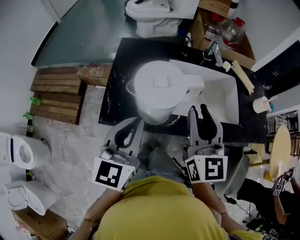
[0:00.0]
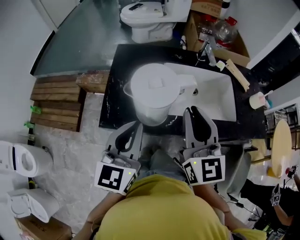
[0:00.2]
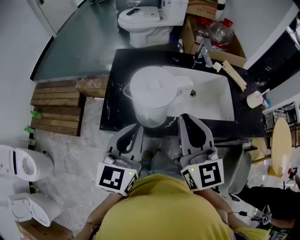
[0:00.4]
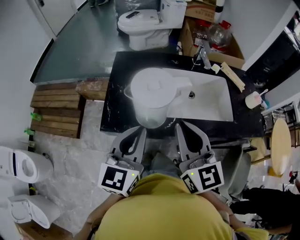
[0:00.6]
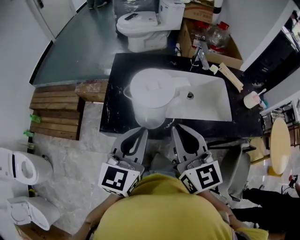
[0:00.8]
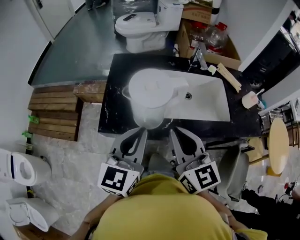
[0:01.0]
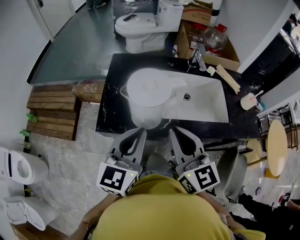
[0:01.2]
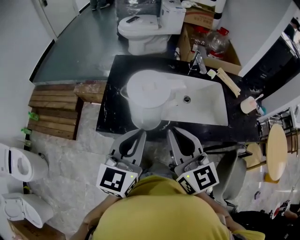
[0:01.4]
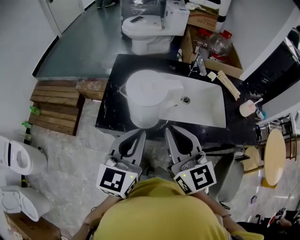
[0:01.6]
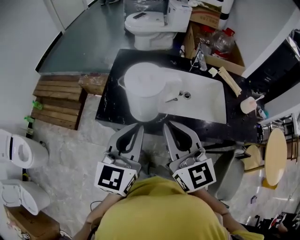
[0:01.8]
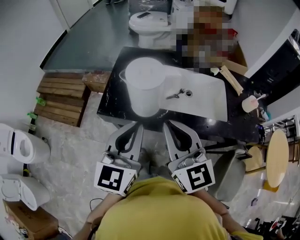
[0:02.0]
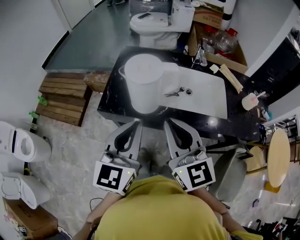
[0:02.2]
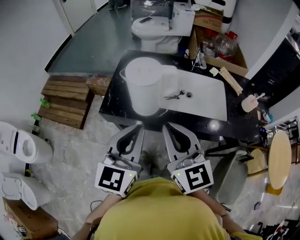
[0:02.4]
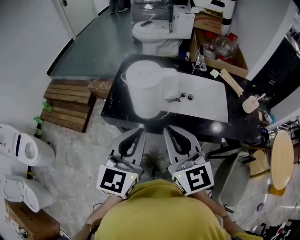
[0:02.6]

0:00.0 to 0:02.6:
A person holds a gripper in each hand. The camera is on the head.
0:00.0 to 0:01.2: The right gripper travels backward by approximately 5 cm, and closes its fingers.
0:01.2 to 0:02.6: The grippers both shift backward by approximately 10 cm.

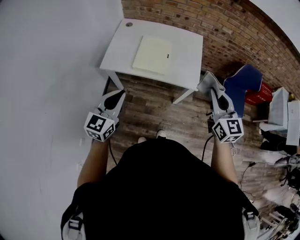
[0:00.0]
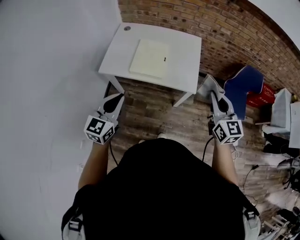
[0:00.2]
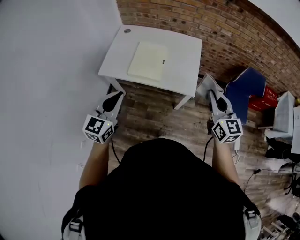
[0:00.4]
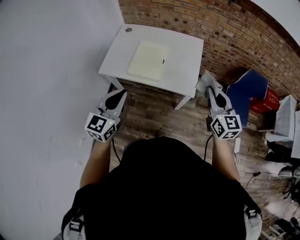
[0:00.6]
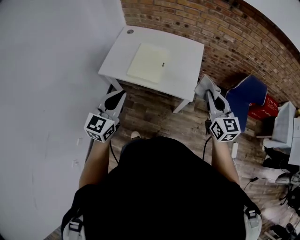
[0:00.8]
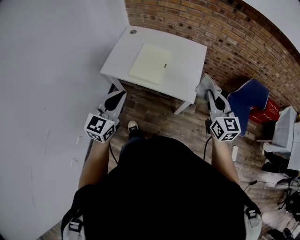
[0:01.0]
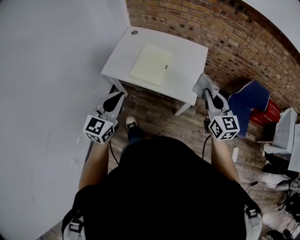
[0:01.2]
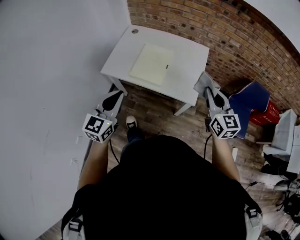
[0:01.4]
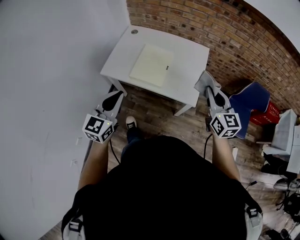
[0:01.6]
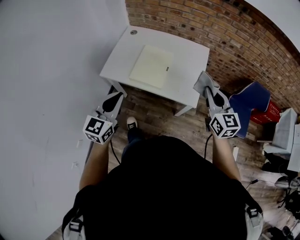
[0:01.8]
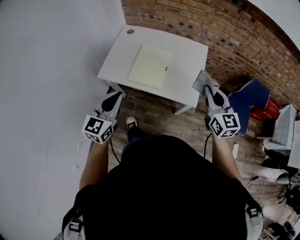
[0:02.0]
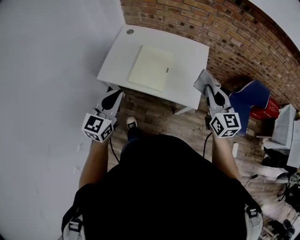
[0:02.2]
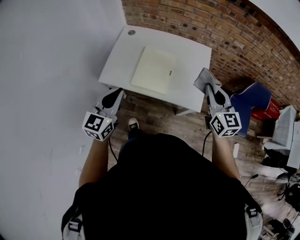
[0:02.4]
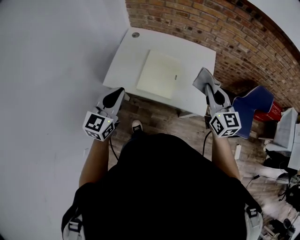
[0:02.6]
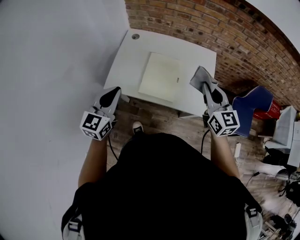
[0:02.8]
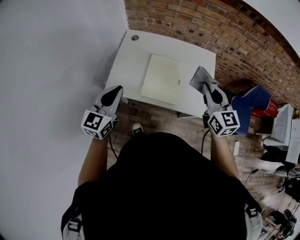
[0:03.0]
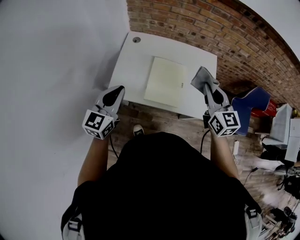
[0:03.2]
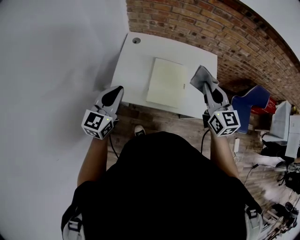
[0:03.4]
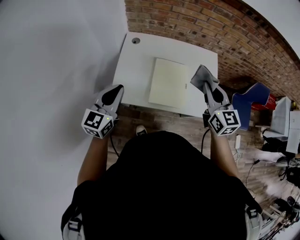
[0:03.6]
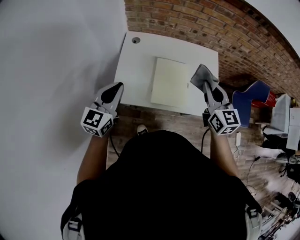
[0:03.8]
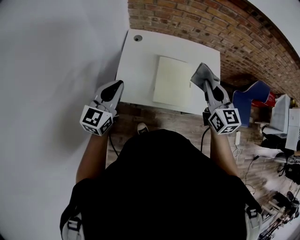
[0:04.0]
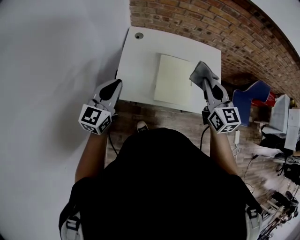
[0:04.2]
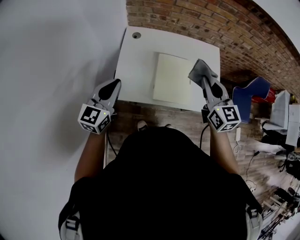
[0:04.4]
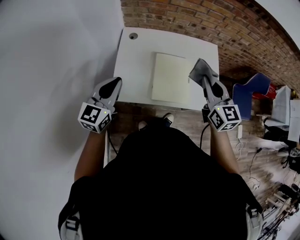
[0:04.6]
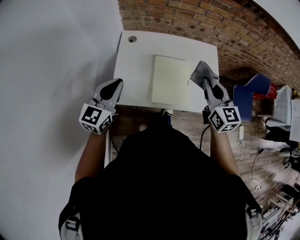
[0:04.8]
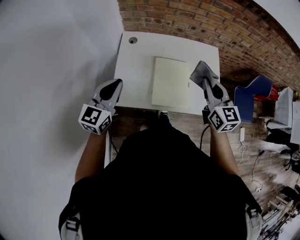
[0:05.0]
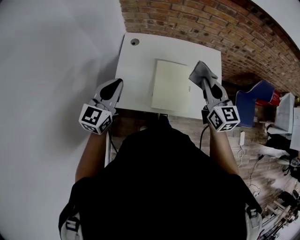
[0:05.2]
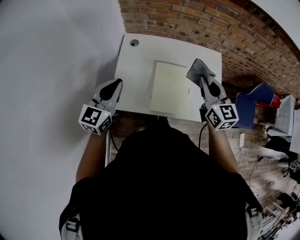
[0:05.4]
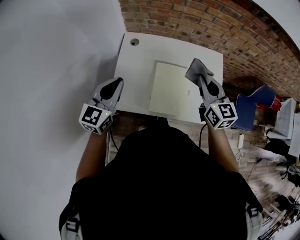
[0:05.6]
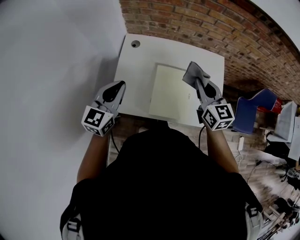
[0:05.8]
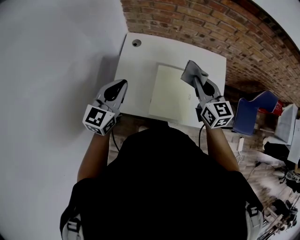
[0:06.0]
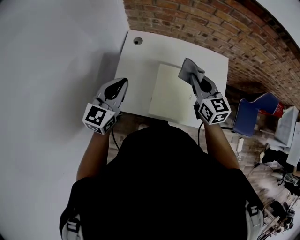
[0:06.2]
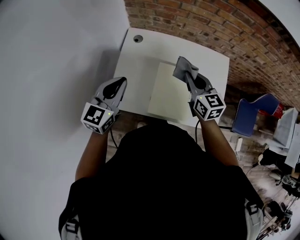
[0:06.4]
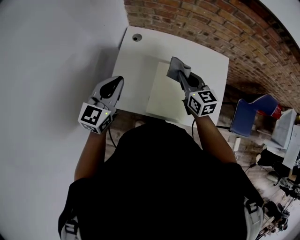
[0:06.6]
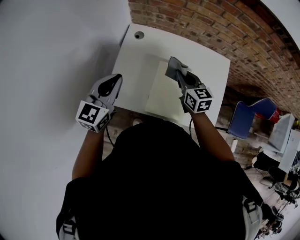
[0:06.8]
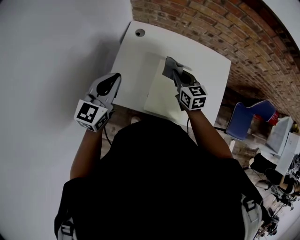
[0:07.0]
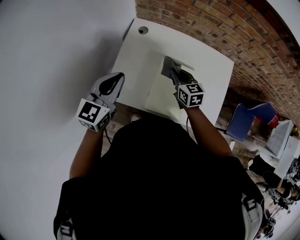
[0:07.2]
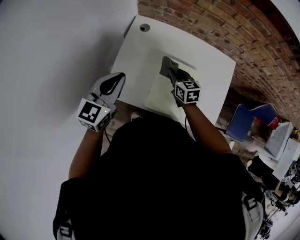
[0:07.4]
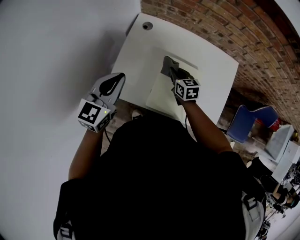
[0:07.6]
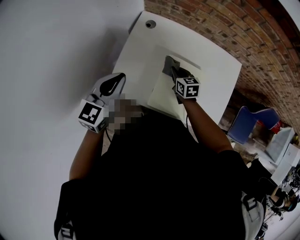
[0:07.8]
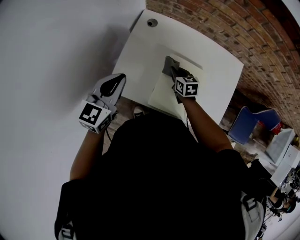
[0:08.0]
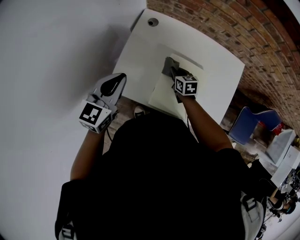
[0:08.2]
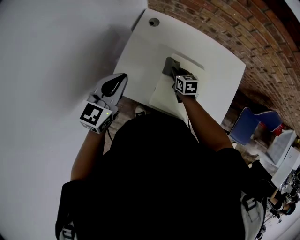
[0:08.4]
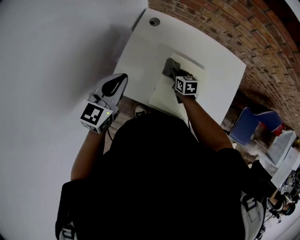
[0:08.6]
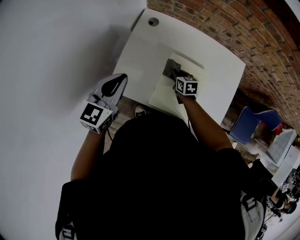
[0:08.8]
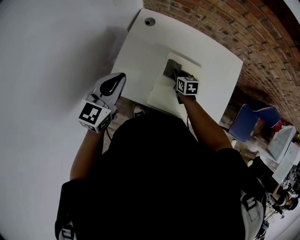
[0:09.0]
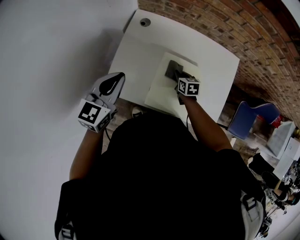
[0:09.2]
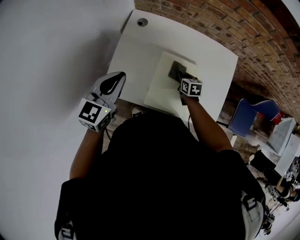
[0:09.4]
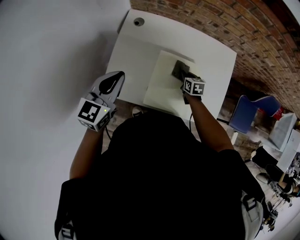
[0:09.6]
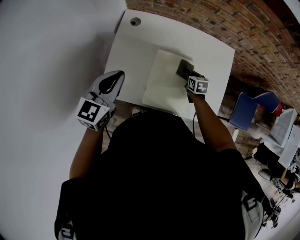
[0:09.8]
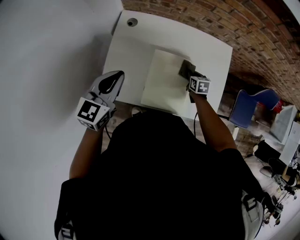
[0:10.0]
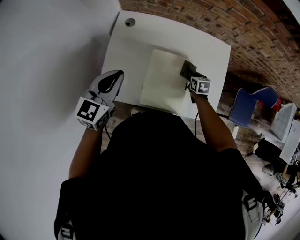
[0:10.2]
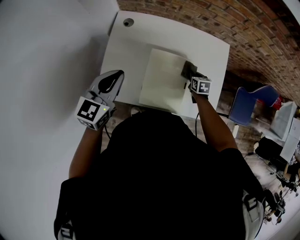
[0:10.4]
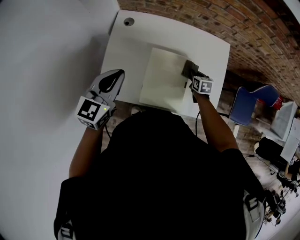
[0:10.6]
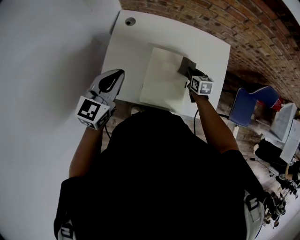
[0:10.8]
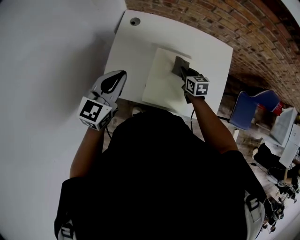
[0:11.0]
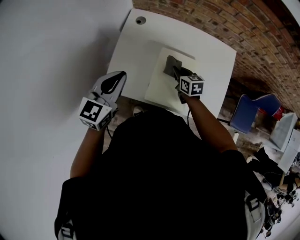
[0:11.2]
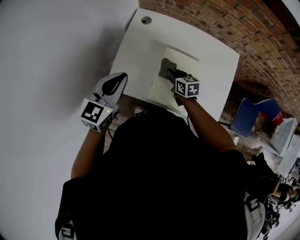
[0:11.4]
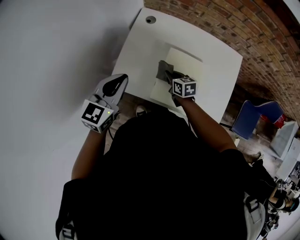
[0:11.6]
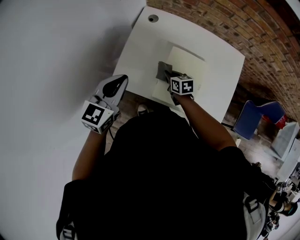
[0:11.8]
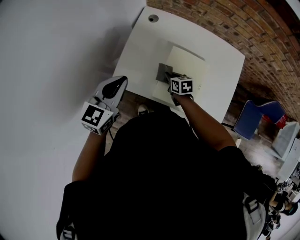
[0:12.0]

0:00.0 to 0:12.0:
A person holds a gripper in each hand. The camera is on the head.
0:00.0 to 0:01.6: The right gripper heads forward and to the right, covering roughly 15 cm. The left gripper shifts some 10 cm to the right and forward.
0:01.6 to 0:03.0: The left gripper goes about 25 cm forward and to the left. The right gripper moves to the left and forward, about 20 cm.
0:03.0 to 0:04.4: The right gripper is displaced to the left by approximately 10 cm. Meanwhile the left gripper goes roughly 15 cm to the left and forward.
0:04.4 to 0:06.0: The left gripper moves forward and to the right, some 10 cm. Meanwhile the right gripper shifts approximately 15 cm forward and downward.
0:06.0 to 0:07.6: The right gripper heads downward, covering roughly 20 cm, and swivels about 30 degrees.
0:07.6 to 0:09.0: The right gripper goes approximately 10 cm downward.
0:09.0 to 0:10.4: The left gripper travels to the right by some 5 cm. The right gripper goes roughly 20 cm to the right.
0:10.4 to 0:12.0: The left gripper shifts some 10 cm backward and to the left; the right gripper travels to the left by approximately 25 cm, and rotates about 30 degrees.

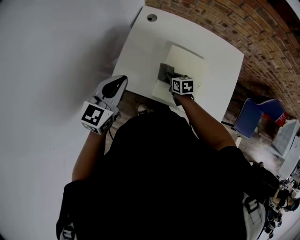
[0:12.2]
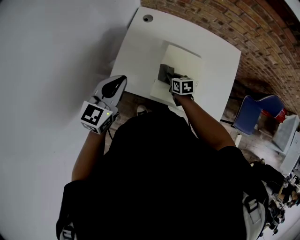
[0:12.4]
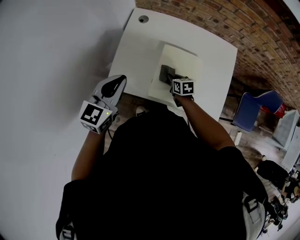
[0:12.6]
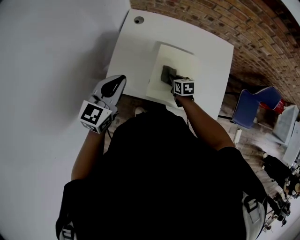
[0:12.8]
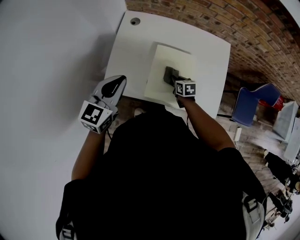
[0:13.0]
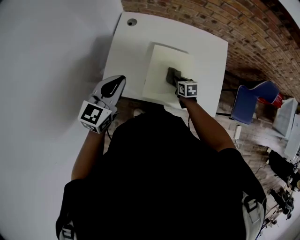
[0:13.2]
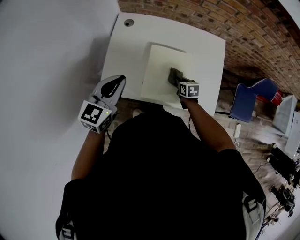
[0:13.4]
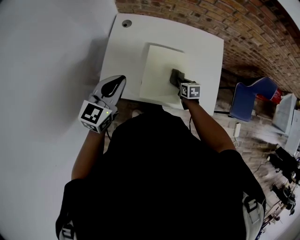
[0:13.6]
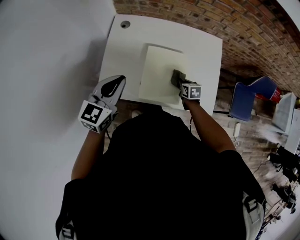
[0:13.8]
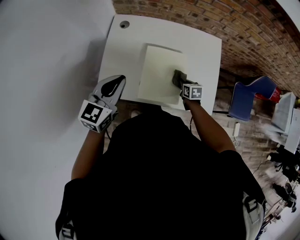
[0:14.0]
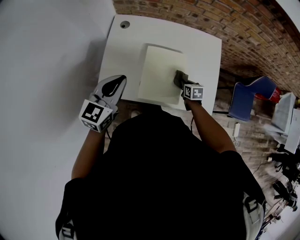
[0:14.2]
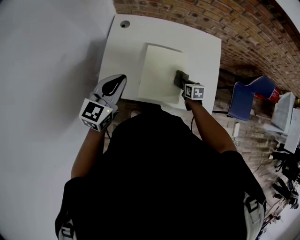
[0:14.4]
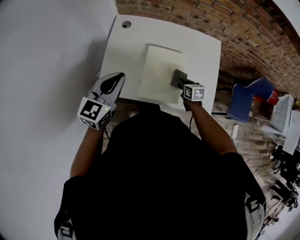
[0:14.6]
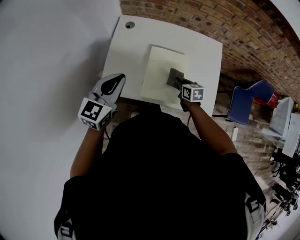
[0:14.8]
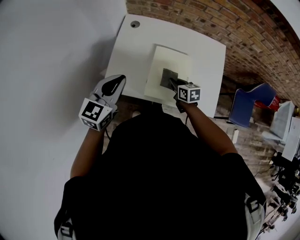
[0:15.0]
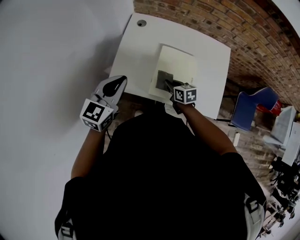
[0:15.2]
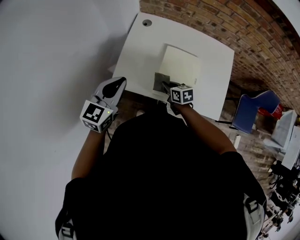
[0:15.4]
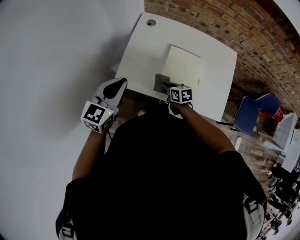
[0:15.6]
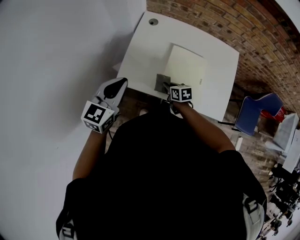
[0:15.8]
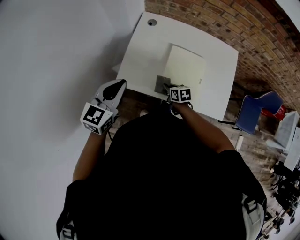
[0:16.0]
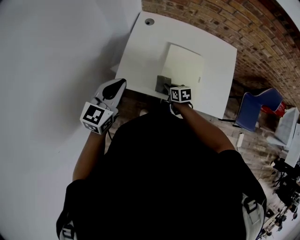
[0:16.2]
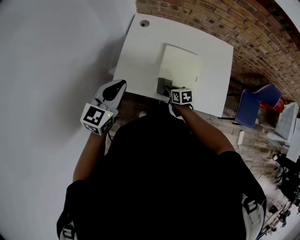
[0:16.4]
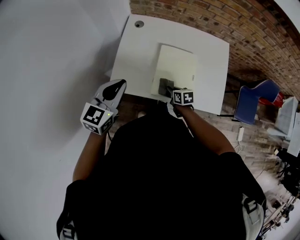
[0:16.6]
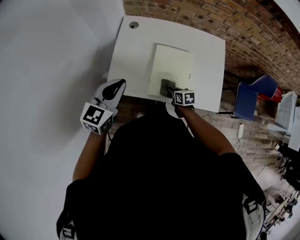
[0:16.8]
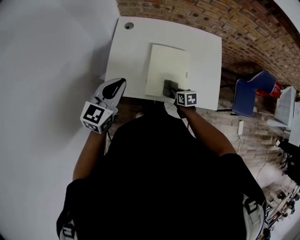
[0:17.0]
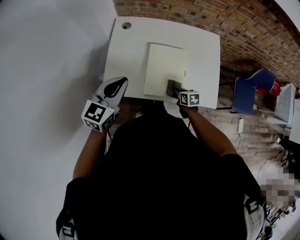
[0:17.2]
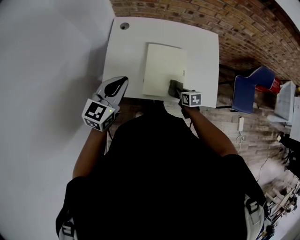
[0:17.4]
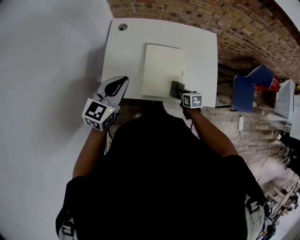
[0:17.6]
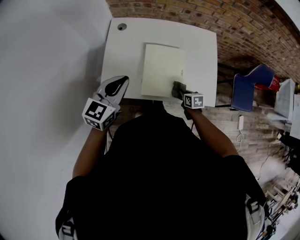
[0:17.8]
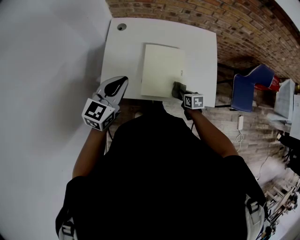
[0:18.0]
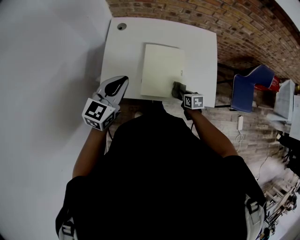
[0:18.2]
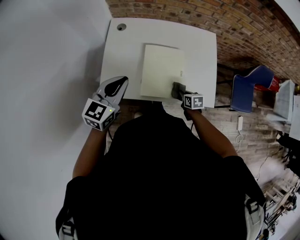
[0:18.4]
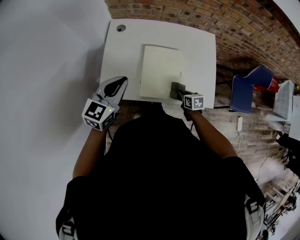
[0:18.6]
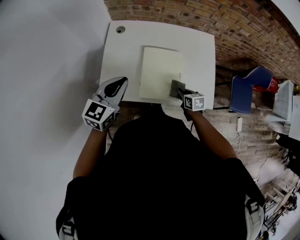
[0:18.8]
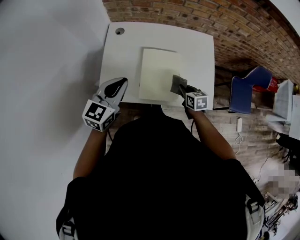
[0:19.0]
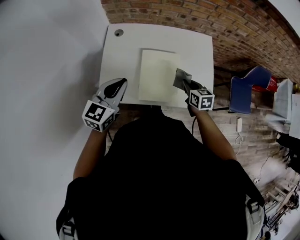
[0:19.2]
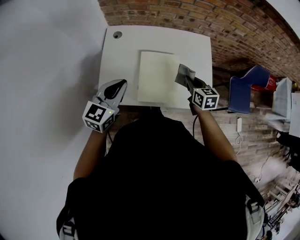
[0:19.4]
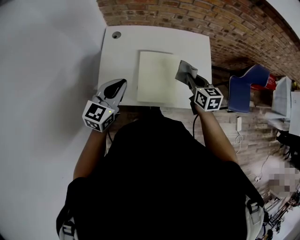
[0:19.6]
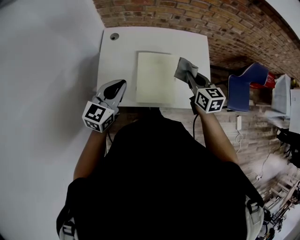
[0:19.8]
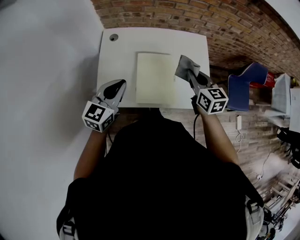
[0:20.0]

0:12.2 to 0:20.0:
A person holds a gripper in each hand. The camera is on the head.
0:12.2 to 0:13.8: The left gripper shifts about 5 cm to the right. Meanwhile the right gripper is displaced to the right by about 20 cm.
0:13.8 to 0:15.4: The left gripper moves to the left and backward, some 10 cm, while the right gripper goes some 20 cm to the left, and swivels approximately 20 degrees.
0:15.4 to 0:16.8: The right gripper shifts some 10 cm to the right and downward.
0:16.8 to 0:18.4: The right gripper heads to the right, covering some 10 cm. The left gripper goes approximately 5 cm to the right.
0:18.4 to 0:20.0: The right gripper shifts roughly 30 cm upward, and points its fingers roughly 30 degrees further upward.

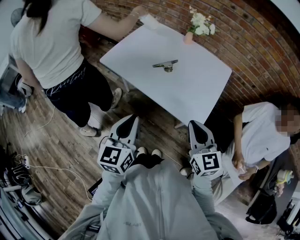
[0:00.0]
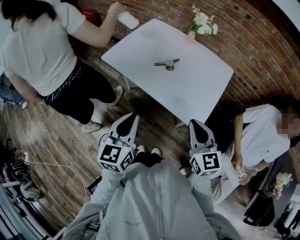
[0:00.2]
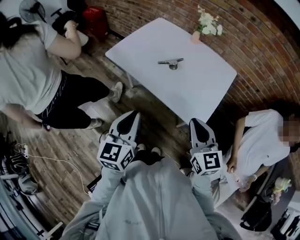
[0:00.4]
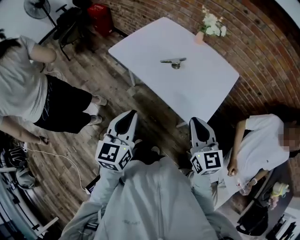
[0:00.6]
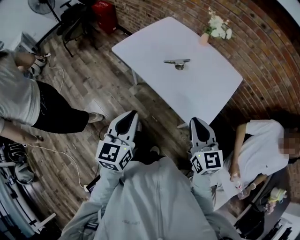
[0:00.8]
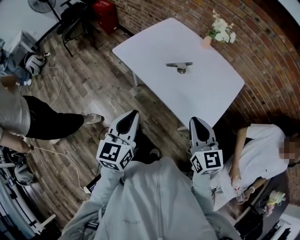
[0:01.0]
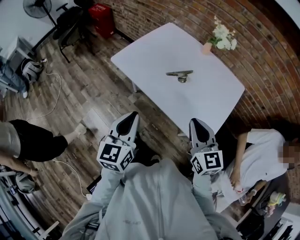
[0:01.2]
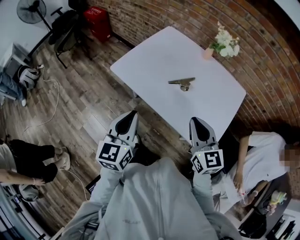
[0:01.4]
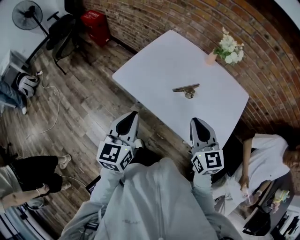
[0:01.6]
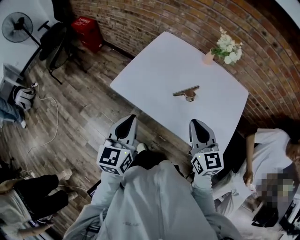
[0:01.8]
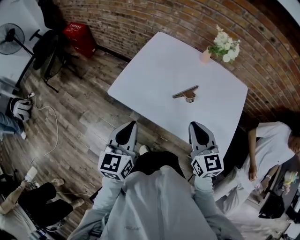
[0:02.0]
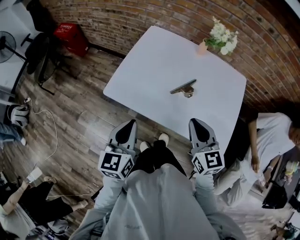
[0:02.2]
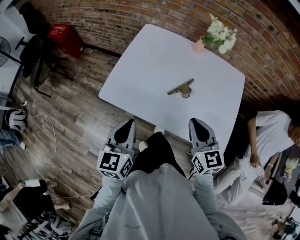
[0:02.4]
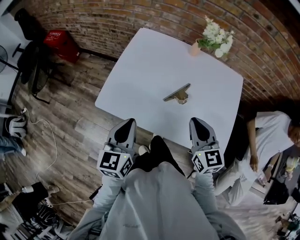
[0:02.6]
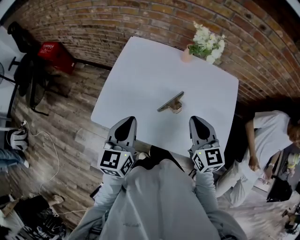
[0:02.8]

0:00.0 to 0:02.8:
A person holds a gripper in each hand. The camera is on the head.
0:00.0 to 0:01.4: Both grippers travel together forward and to the left, roughly 15 cm.
0:01.4 to 0:02.8: The two grippers go some 20 cm forward. The left gripper turns by about 20 degrees. The right gripper swivels about 20 degrees.
